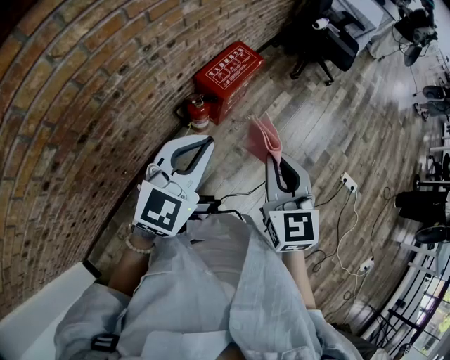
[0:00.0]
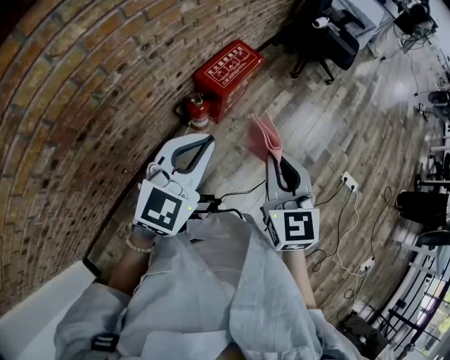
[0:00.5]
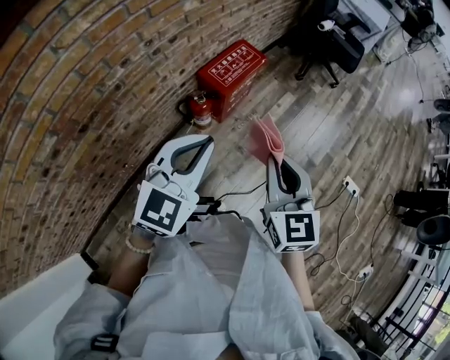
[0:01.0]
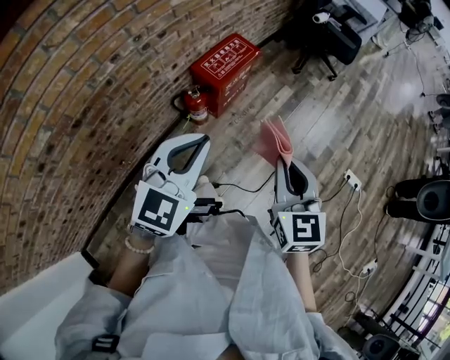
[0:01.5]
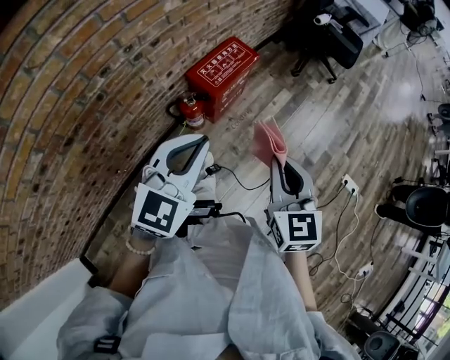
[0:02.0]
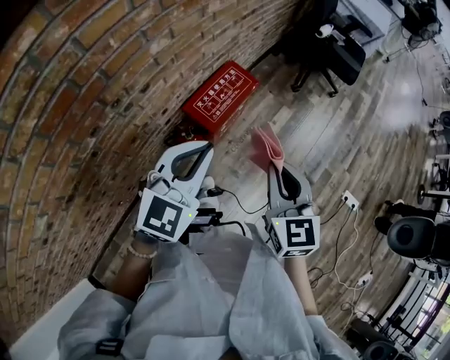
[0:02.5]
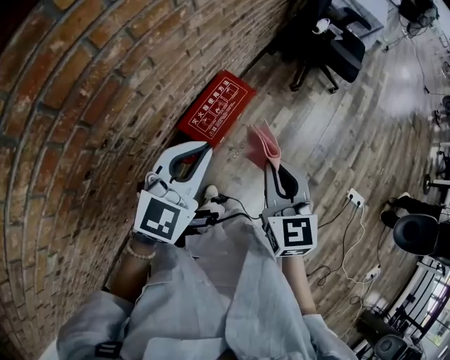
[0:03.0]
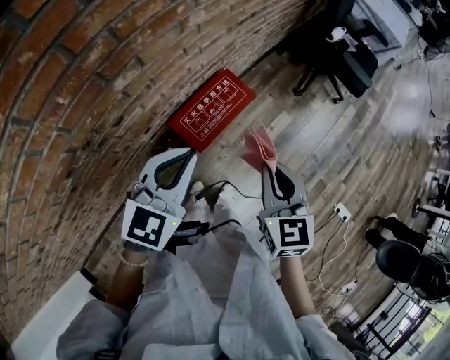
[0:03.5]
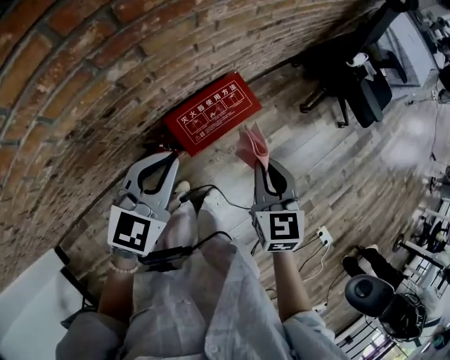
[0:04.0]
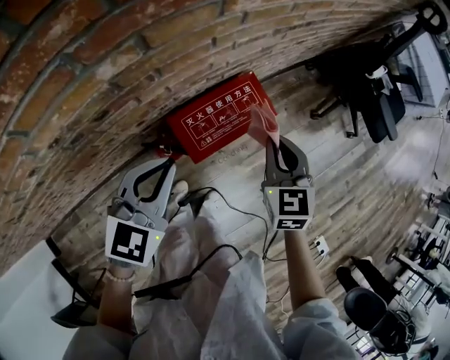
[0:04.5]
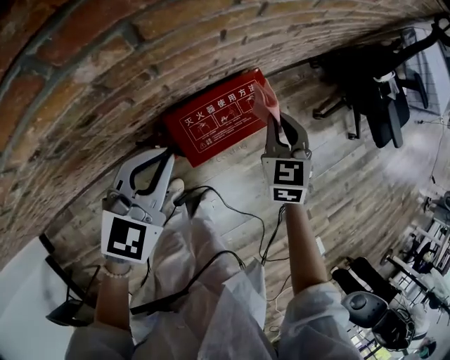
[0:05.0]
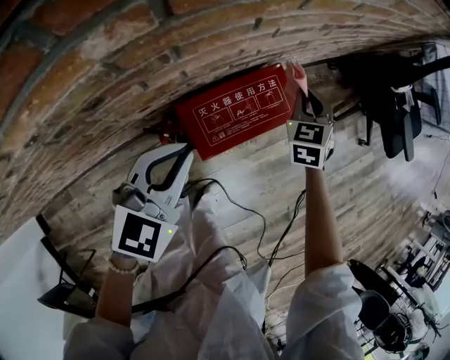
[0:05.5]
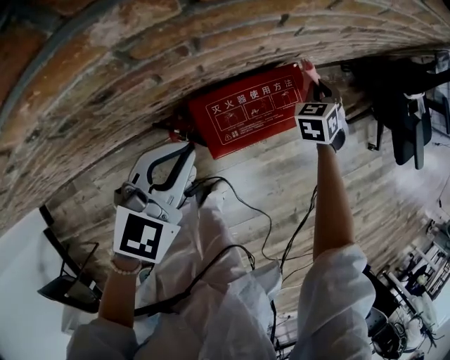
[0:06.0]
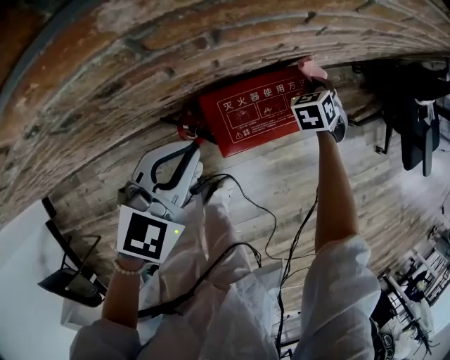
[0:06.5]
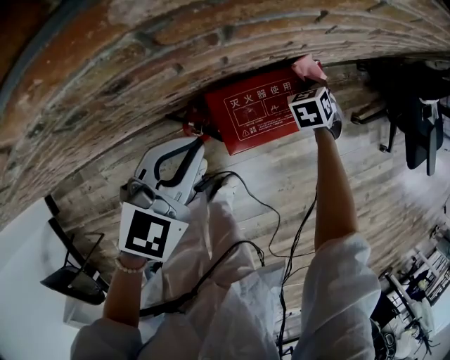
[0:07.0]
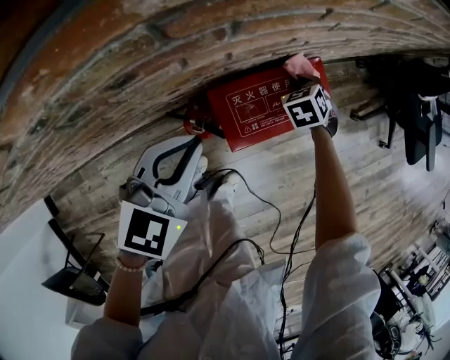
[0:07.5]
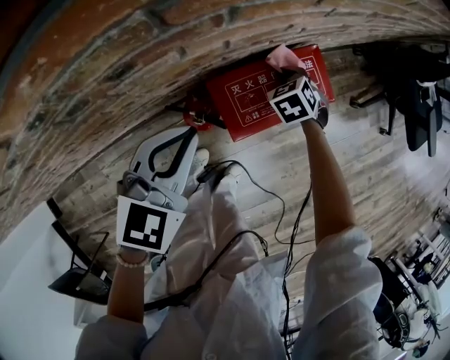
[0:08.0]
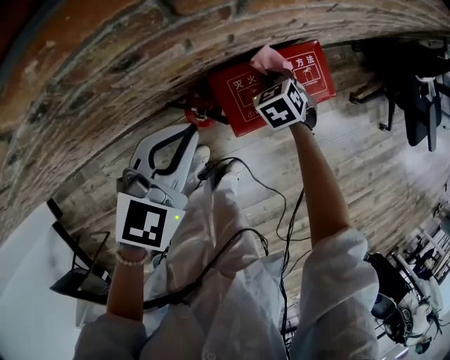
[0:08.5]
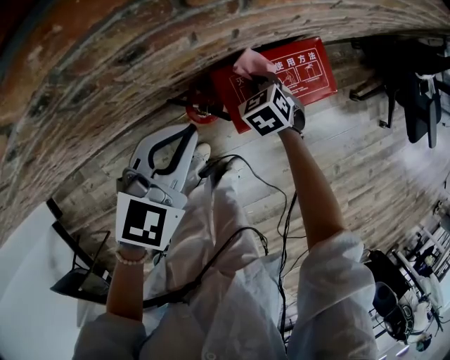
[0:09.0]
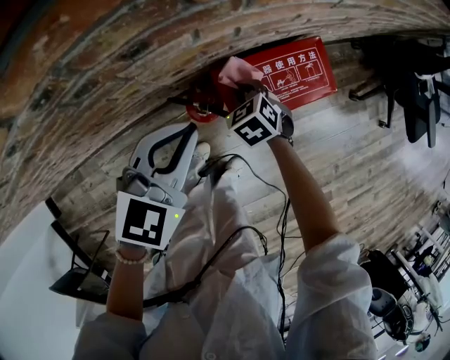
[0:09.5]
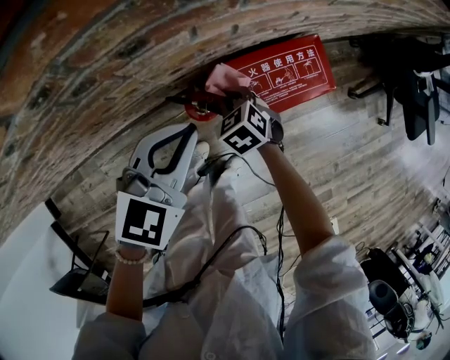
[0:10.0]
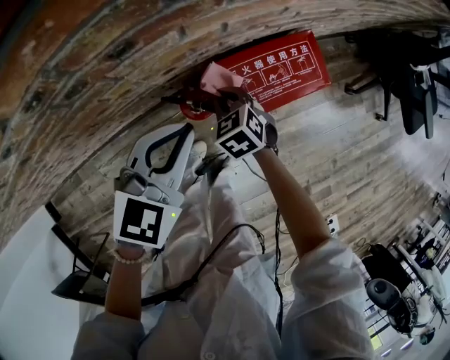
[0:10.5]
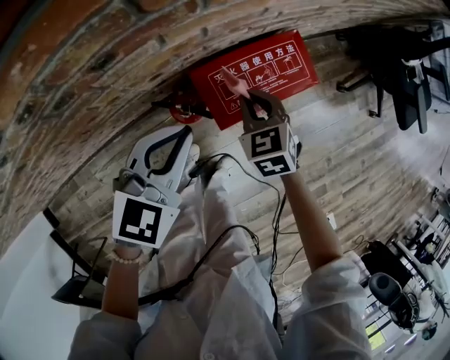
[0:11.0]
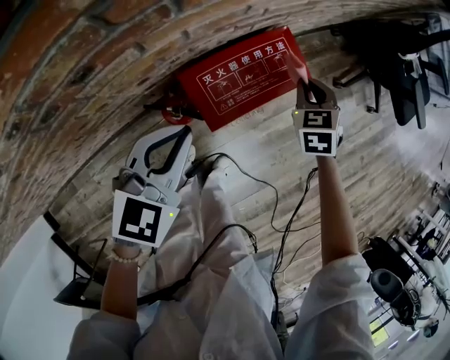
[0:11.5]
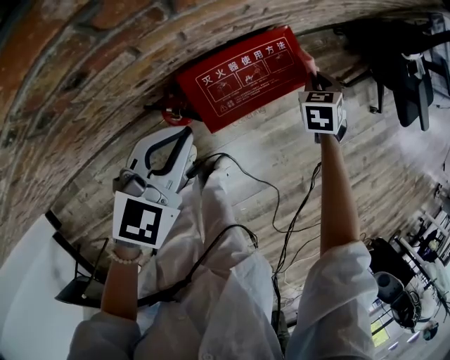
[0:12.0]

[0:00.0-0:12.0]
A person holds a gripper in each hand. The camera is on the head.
0:00.0 to 0:02.0: The left gripper moves some 5 cm. Meanwhile the right gripper shifts some 5 cm to the right.
0:02.0 to 0:04.0: Both grippers move forward, some 35 cm. The left gripper turns by roughly 20 degrees.
0:04.0 to 0:06.0: The left gripper heads downward and to the left, covering approximately 15 cm. Meanwhile the right gripper moves forward and downward, some 40 cm, and turns by about 40 degrees.
0:06.0 to 0:08.0: The right gripper goes roughly 15 cm to the left, backward and downward, and changes its angle by roughly 20 degrees.
0:08.0 to 0:10.0: The right gripper travels to the left and backward by approximately 20 cm.
0:10.0 to 0:12.0: The left gripper changes place by roughly 5 cm, while the right gripper moves approximately 35 cm, and rotates roughly 40 degrees.

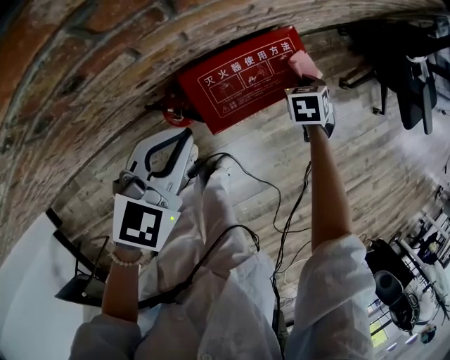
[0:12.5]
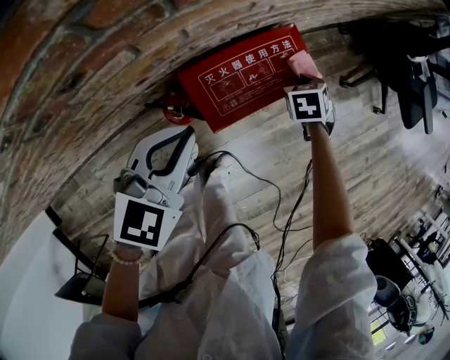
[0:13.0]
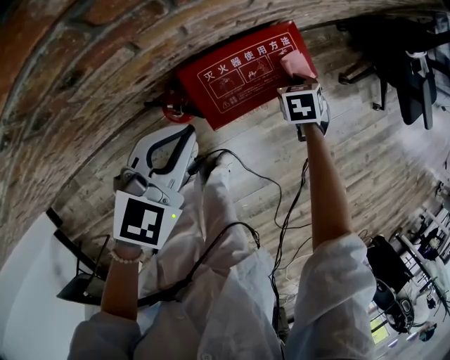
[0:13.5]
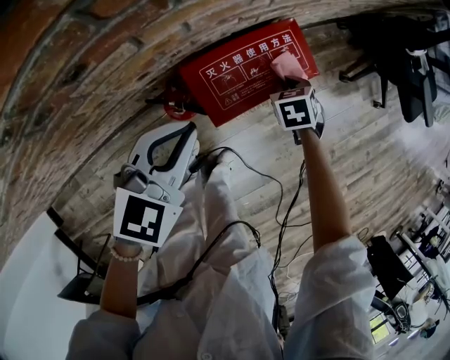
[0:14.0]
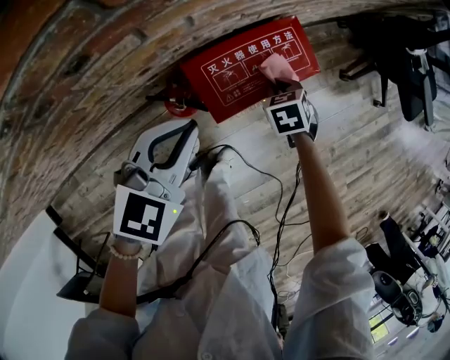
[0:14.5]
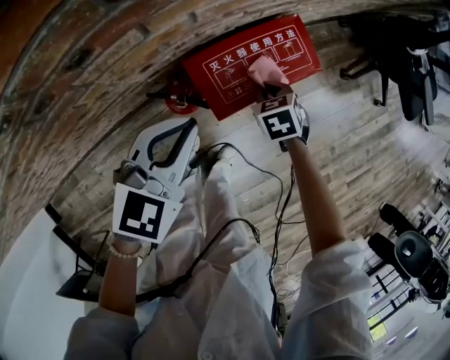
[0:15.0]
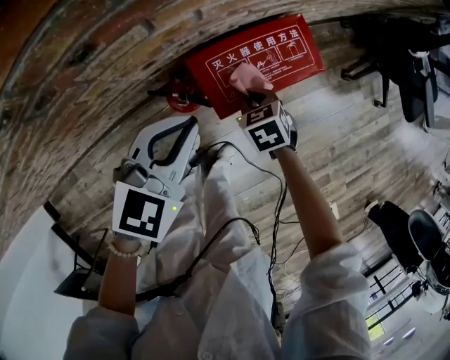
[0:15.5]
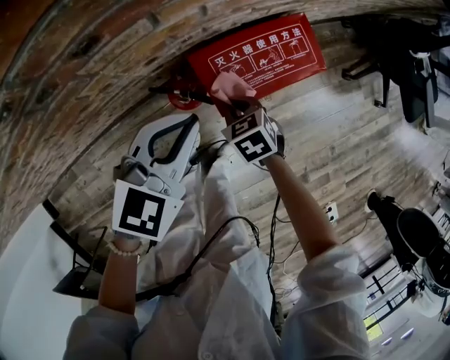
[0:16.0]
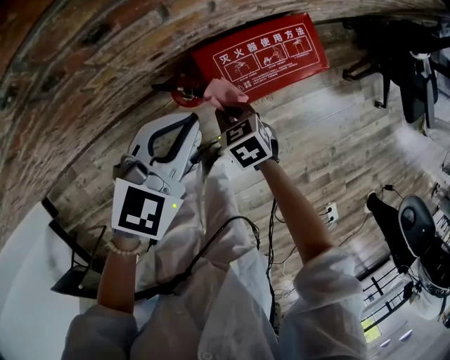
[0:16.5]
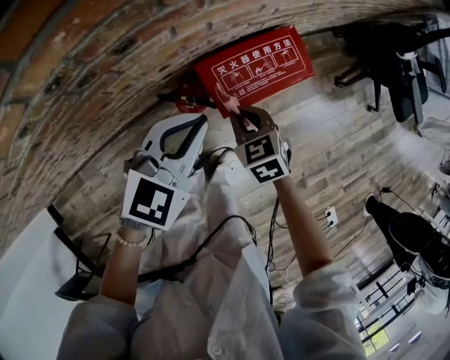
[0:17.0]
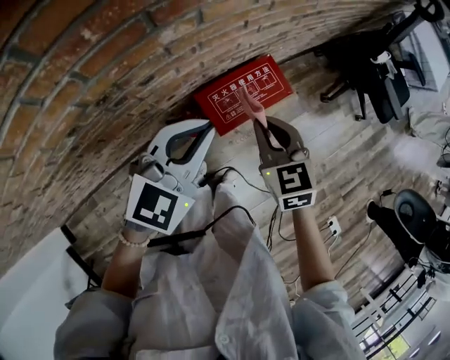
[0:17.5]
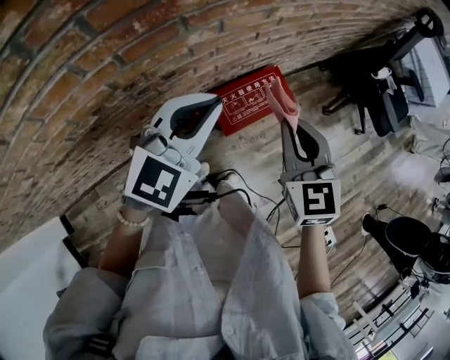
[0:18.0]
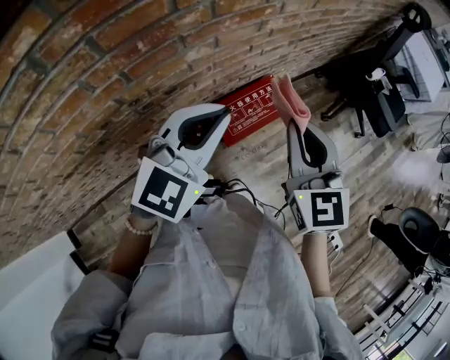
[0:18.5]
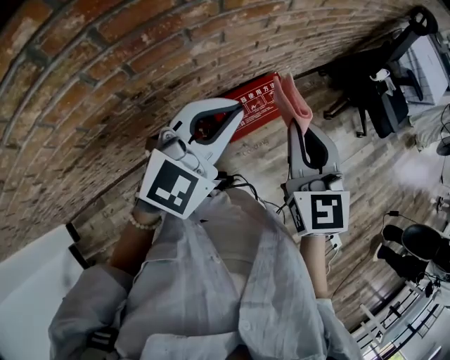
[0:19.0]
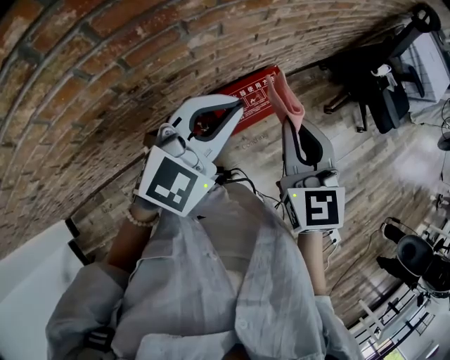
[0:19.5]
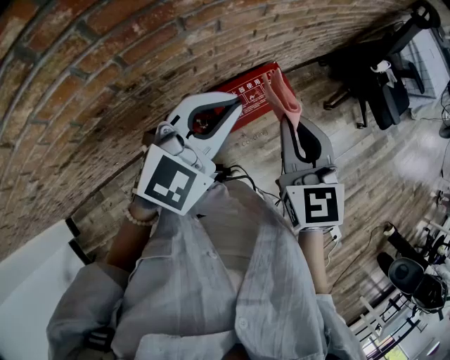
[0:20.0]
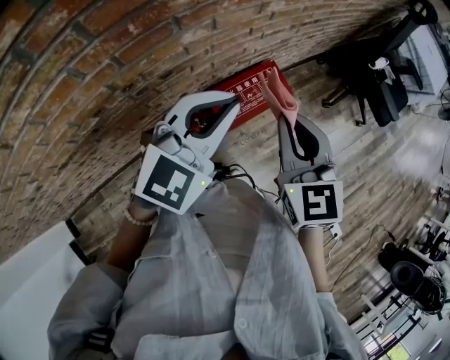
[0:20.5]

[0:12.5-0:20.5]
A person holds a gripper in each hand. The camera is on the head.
0:12.5 to 0:14.5: The right gripper travels backward and to the left by roughly 10 cm.
0:14.5 to 0:16.5: The right gripper is displaced to the left and backward by approximately 20 cm, and swivels some 20 degrees.
0:16.5 to 0:18.5: The right gripper shifts about 50 cm upward, and tips its fingers upward by about 40 degrees; the left gripper heads upward, covering approximately 30 cm, and rotates about 20 degrees.
0:18.5 to 0:20.5: There are only small adjustments of the grippers.

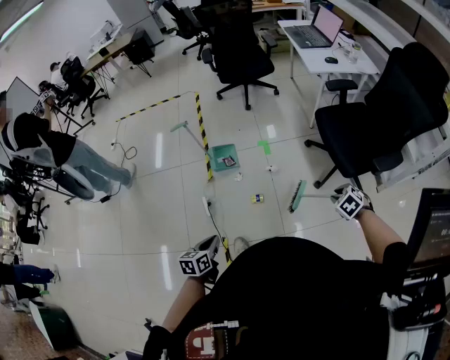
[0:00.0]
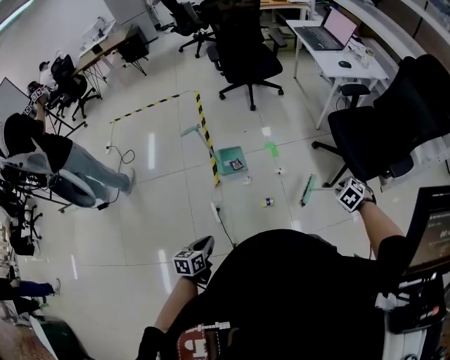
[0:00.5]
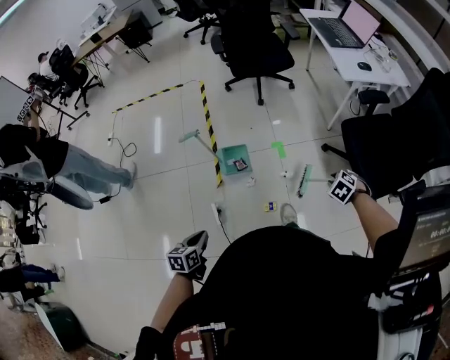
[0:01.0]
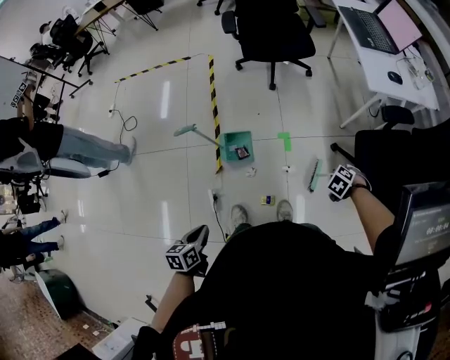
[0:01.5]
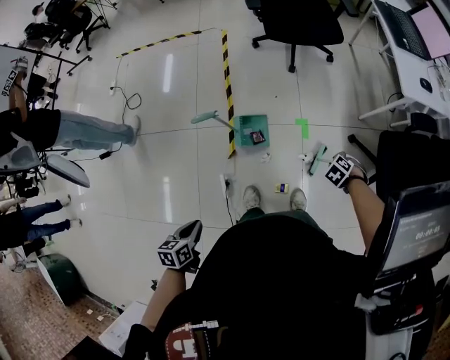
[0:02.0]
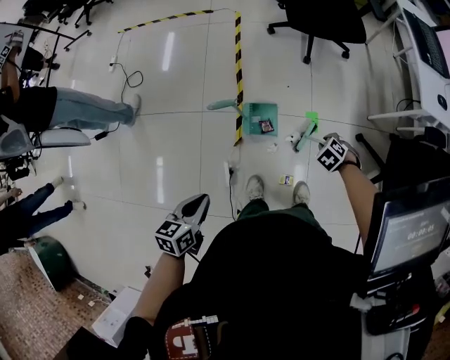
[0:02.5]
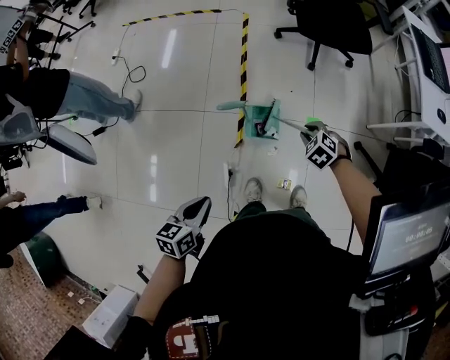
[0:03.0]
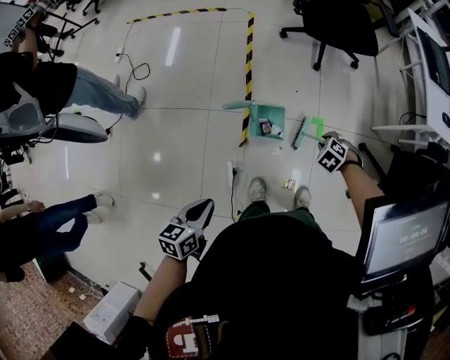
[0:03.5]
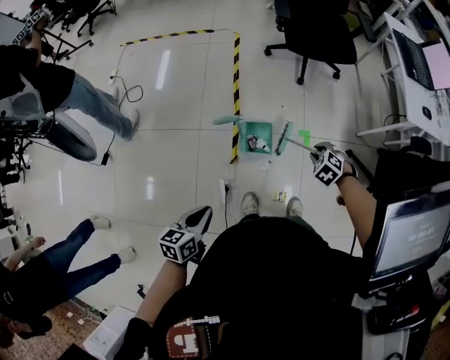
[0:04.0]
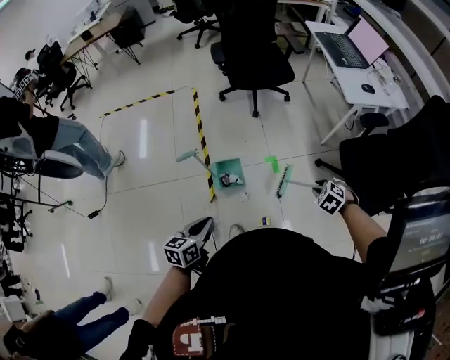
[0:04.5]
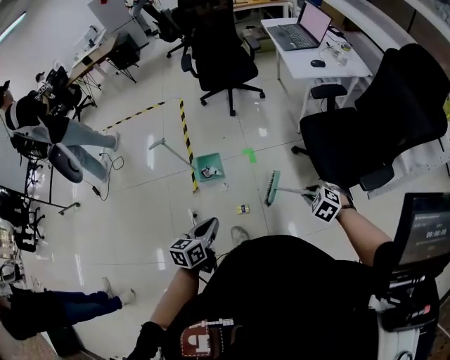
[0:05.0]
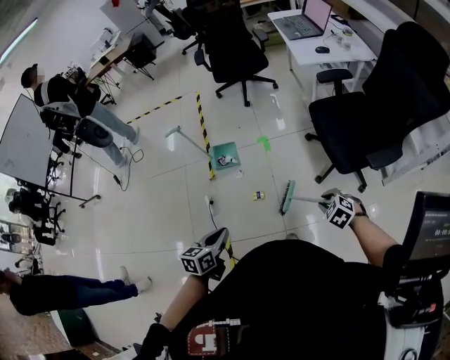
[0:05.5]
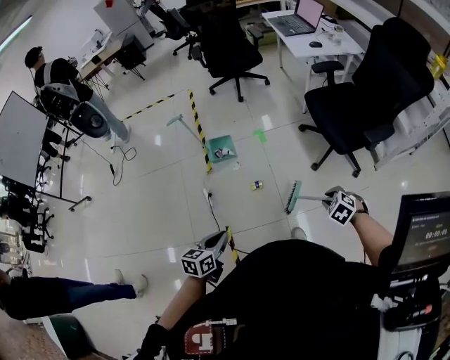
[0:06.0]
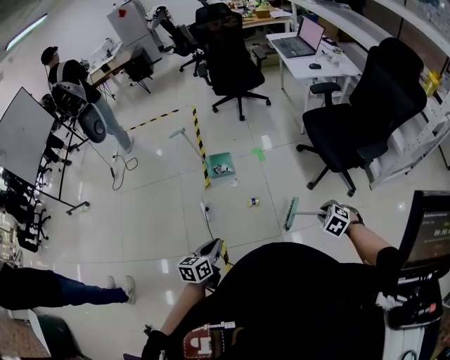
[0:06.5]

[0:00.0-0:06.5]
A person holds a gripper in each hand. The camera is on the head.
0:00.0 to 0:02.0: The left gripper ends up about 40 cm from where it was.
0:02.0 to 0:04.5: The left gripper moves about 15 cm, and changes its angle by some 30 degrees.
0:04.5 to 0:06.5: The left gripper ends up approximately 50 cm from where it was.
